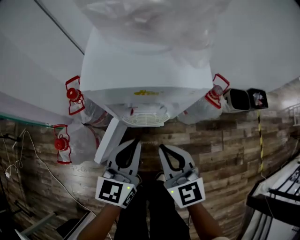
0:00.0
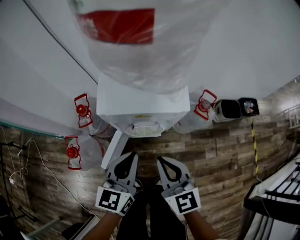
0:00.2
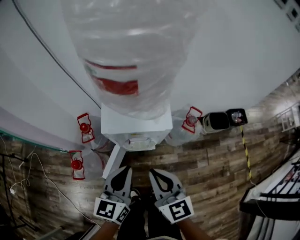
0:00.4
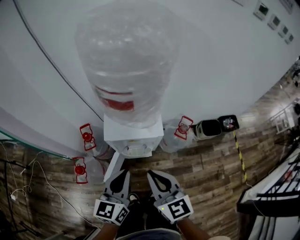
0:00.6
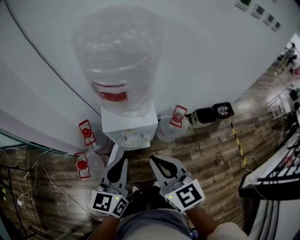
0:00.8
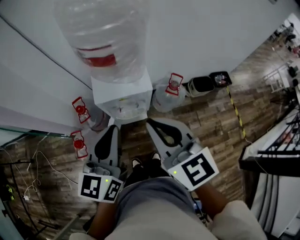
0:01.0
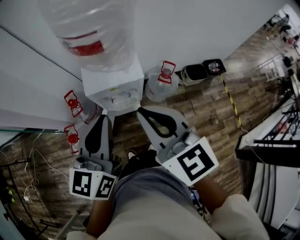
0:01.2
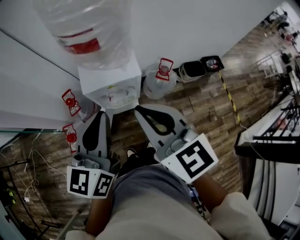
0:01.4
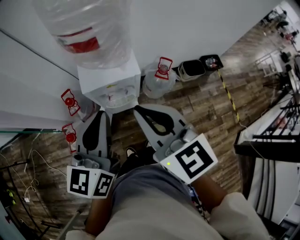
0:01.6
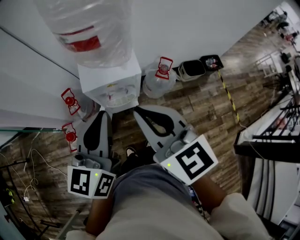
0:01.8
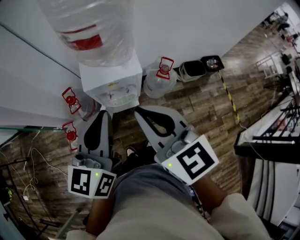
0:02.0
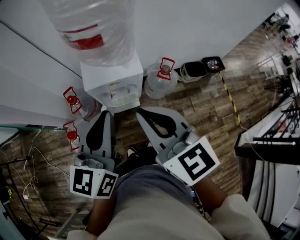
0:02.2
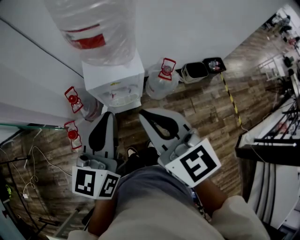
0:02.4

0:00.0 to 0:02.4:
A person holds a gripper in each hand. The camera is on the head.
0:00.0 to 0:01.2: Both grippers move upward, some 40 cm.
0:01.2 to 0:02.4: The grippers move only a little.

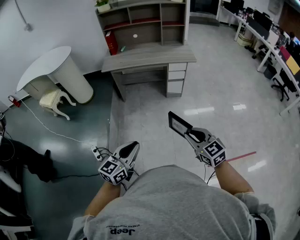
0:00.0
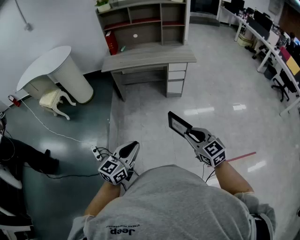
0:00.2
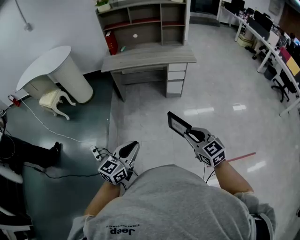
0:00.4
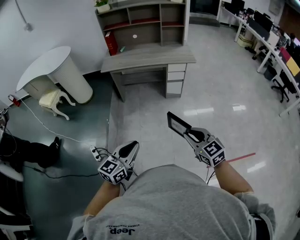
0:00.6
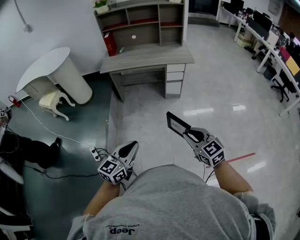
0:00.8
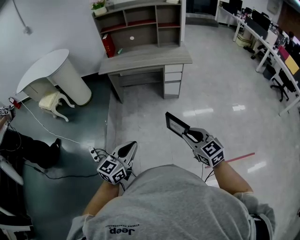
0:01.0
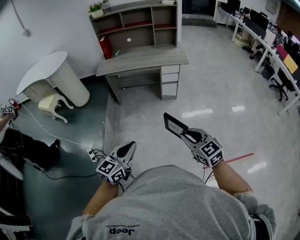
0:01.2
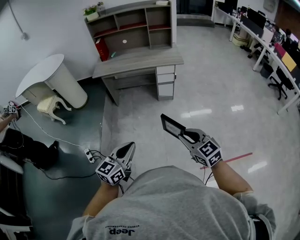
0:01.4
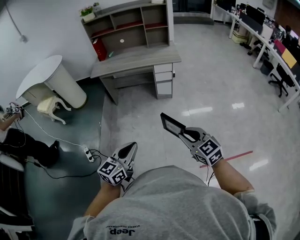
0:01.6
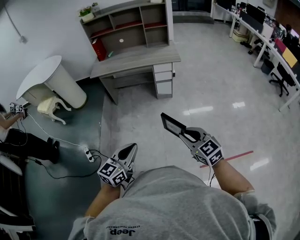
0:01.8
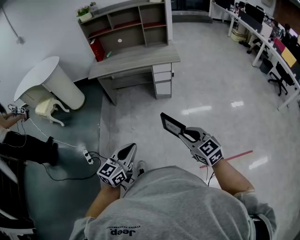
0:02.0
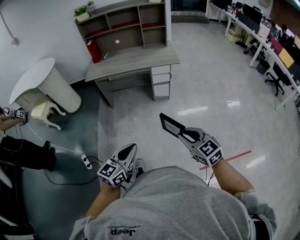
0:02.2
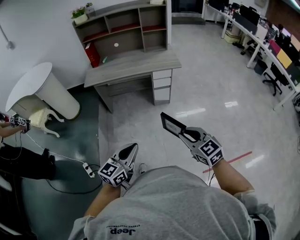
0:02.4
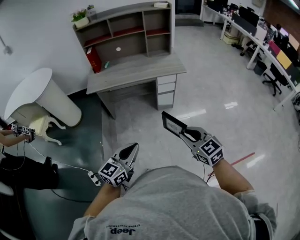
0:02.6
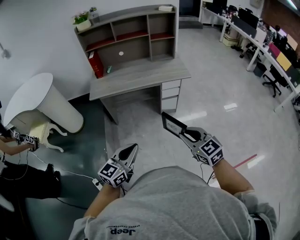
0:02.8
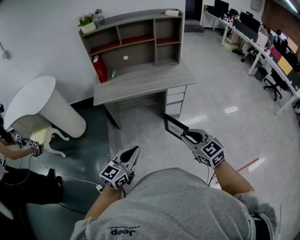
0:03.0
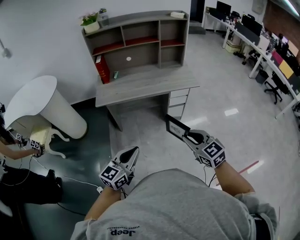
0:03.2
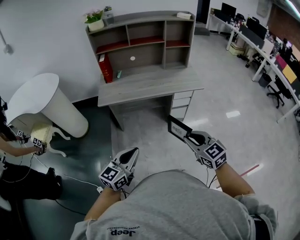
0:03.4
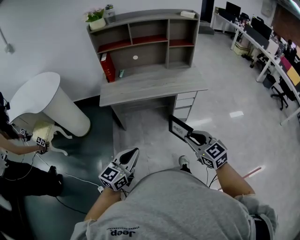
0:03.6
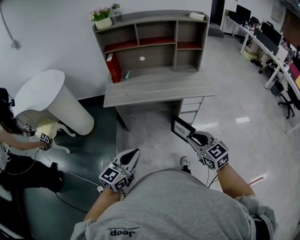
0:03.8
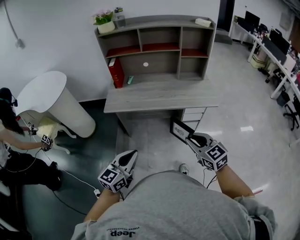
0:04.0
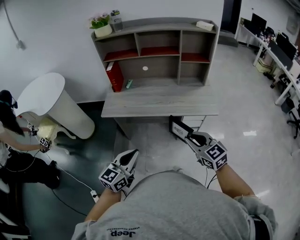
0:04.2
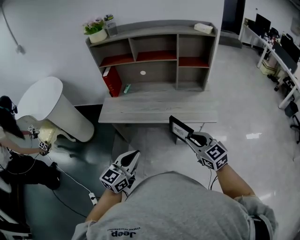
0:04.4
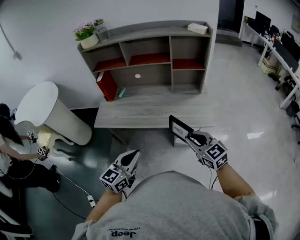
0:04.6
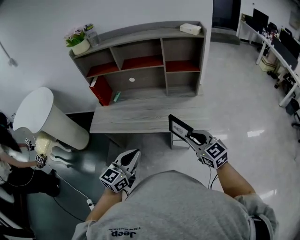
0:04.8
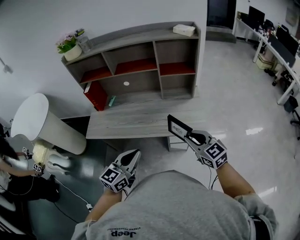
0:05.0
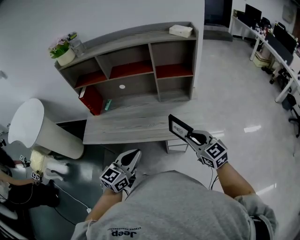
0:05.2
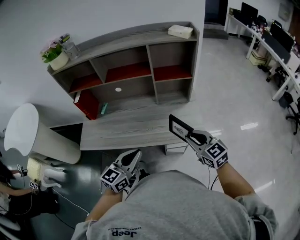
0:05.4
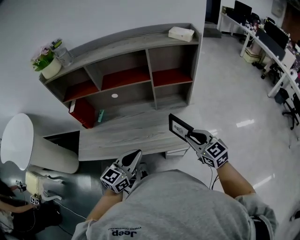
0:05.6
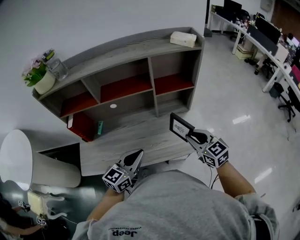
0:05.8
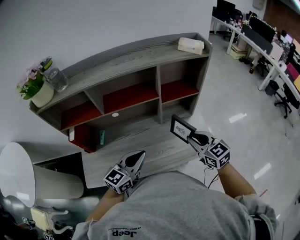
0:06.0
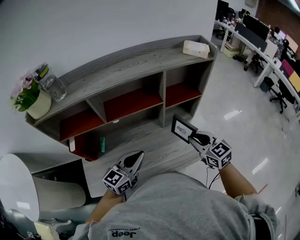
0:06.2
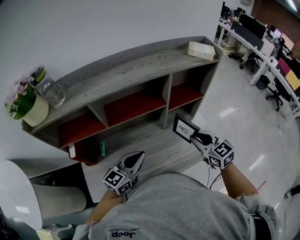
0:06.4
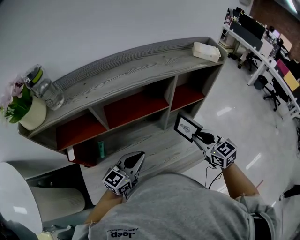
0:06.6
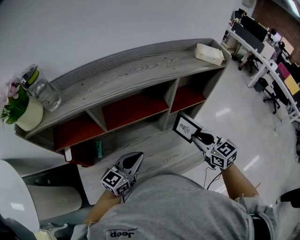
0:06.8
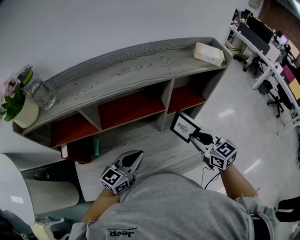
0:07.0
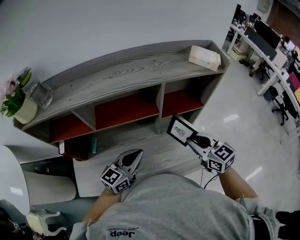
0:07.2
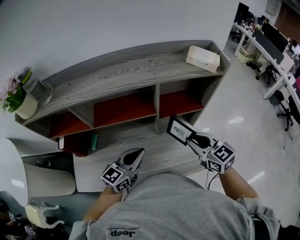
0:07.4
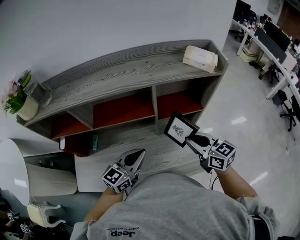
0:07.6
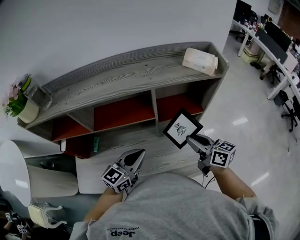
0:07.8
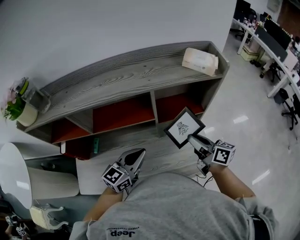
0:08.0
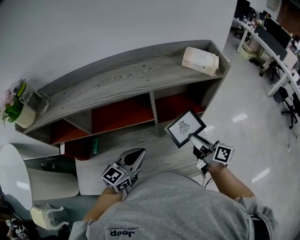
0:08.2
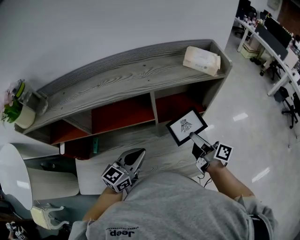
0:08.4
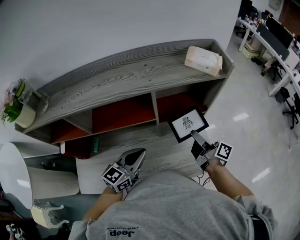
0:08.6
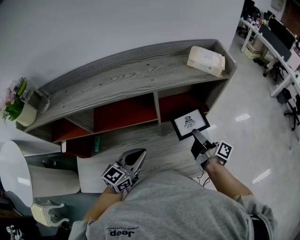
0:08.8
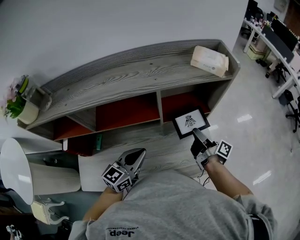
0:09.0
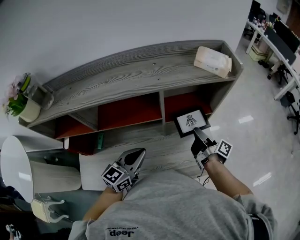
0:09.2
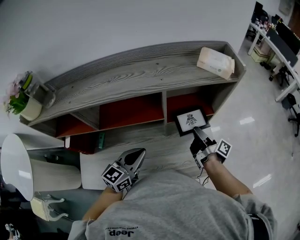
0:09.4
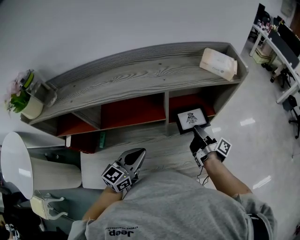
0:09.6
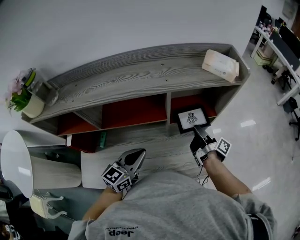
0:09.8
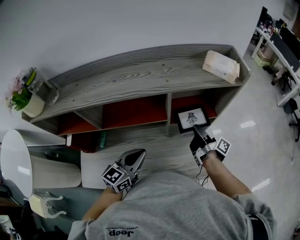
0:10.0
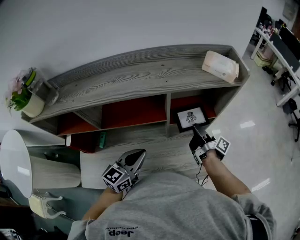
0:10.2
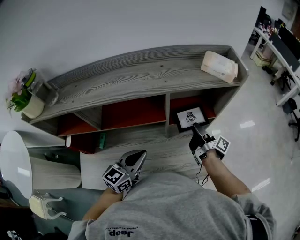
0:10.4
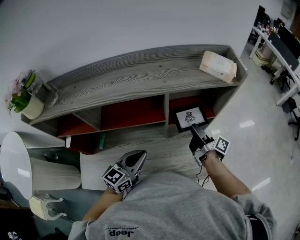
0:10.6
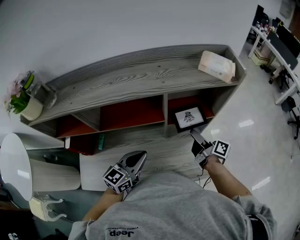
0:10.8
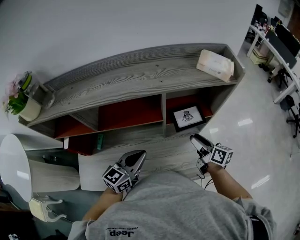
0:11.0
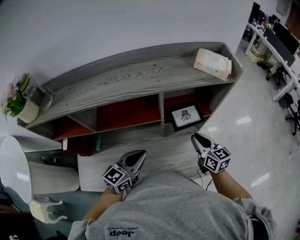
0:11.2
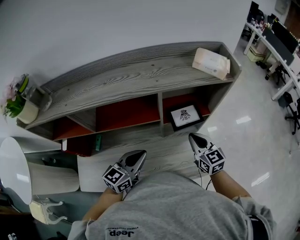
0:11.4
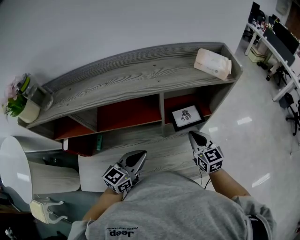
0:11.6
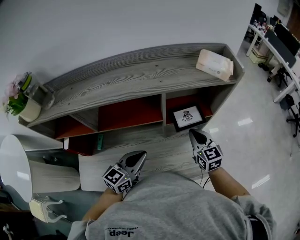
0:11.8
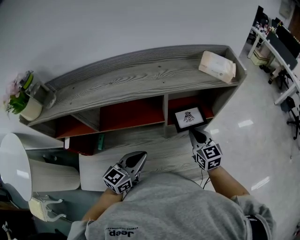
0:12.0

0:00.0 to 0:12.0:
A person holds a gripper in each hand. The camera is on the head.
0:00.0 to 0:01.6: The two grippers go roughly 15 cm to the right.
0:01.6 to 0:03.0: Both grippers travel together forward and to the left, about 35 cm.
0:03.0 to 0:04.4: The two grippers go roughly 30 cm forward.
0:04.4 to 0:06.0: Both grippers travel together forward, approximately 35 cm. The left gripper changes its angle by approximately 20 degrees.
0:06.0 to 0:07.6: The grippers both shift forward by some 10 cm.
0:07.6 to 0:09.0: The right gripper heads downward and forward, covering about 10 cm, and twists roughly 70 degrees clockwise, seen from behind.
0:09.0 to 0:10.4: The right gripper changes place by about 5 cm.
0:10.4 to 0:12.0: The right gripper twists about 80 degrees counterclockwise, seen from behind, and closes.

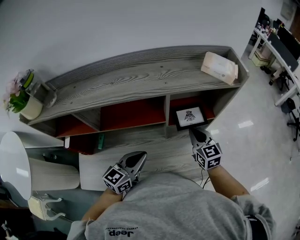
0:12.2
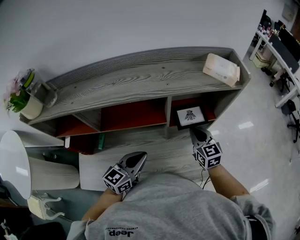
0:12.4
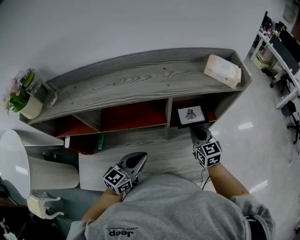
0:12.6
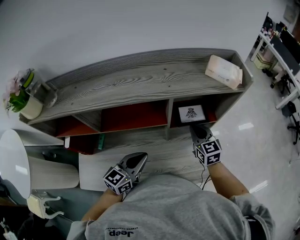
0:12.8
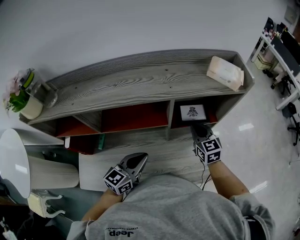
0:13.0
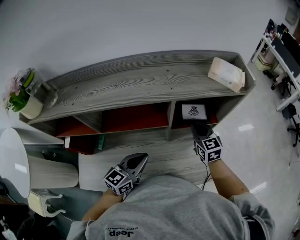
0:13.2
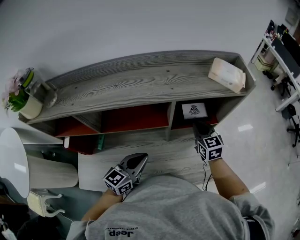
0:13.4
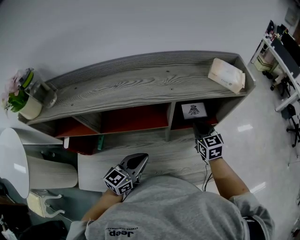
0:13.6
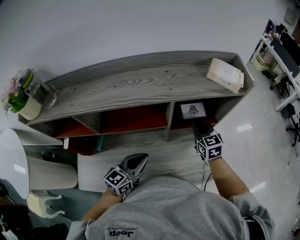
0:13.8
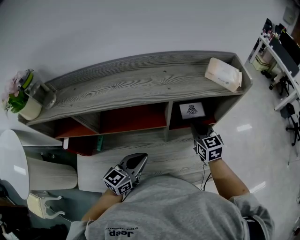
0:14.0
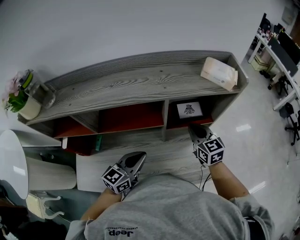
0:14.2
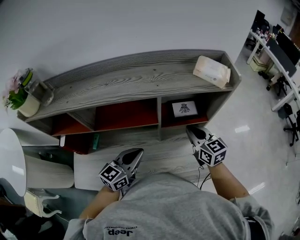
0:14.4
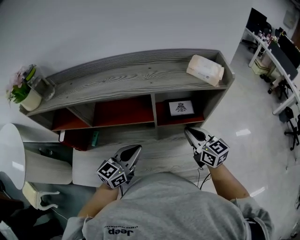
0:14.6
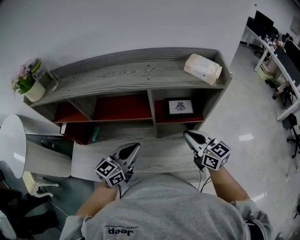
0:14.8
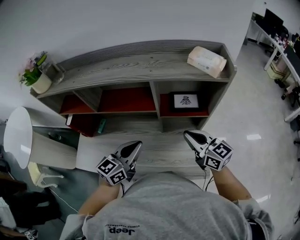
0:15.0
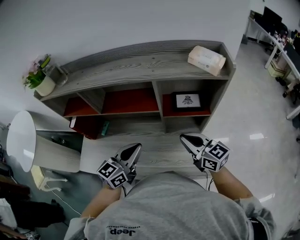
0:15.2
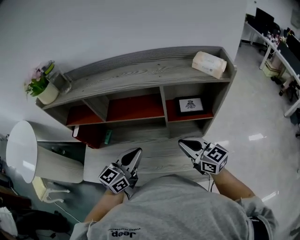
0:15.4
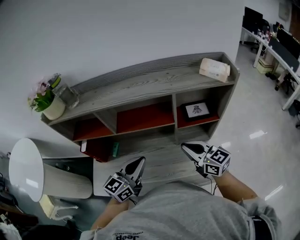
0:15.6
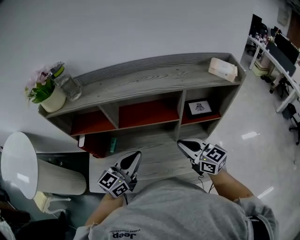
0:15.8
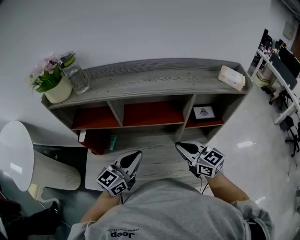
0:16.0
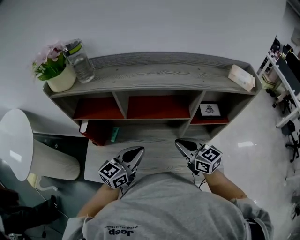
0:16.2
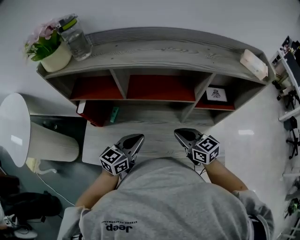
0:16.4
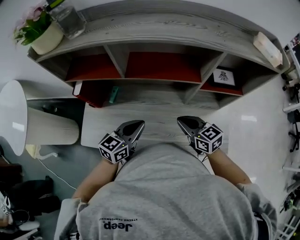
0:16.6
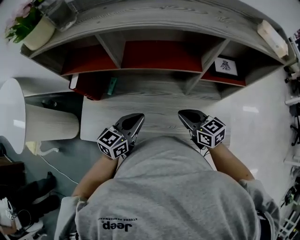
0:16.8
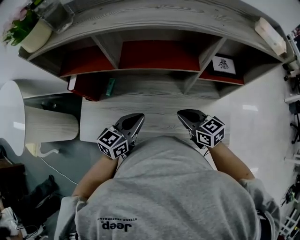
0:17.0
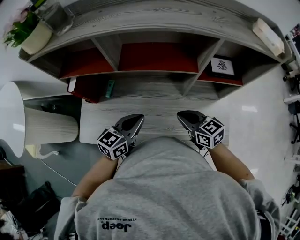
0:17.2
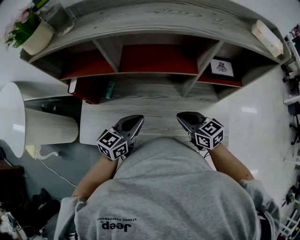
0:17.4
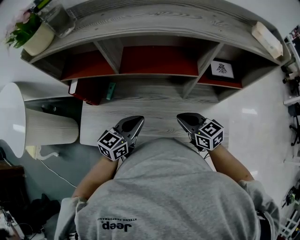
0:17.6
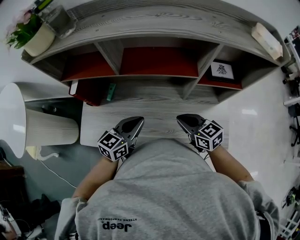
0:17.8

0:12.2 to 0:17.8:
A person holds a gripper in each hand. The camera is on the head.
0:12.2 to 0:13.6: The right gripper moves forward, roughly 5 cm.
0:13.6 to 0:15.0: The left gripper moves to the right, approximately 5 cm. Meanwhile the right gripper goes roughly 15 cm backward and upward, and turns by some 40 degrees.
0:15.0 to 0:16.4: The two grippers go about 20 cm to the left.
0:16.4 to 0:17.8: The right gripper travels downward by some 5 cm.

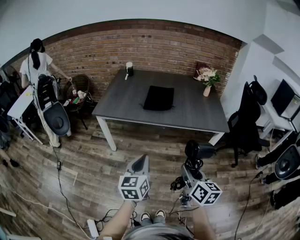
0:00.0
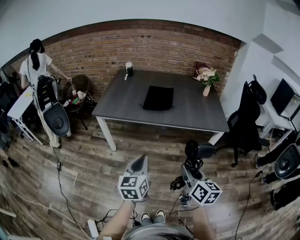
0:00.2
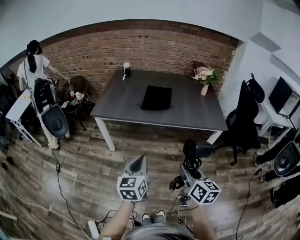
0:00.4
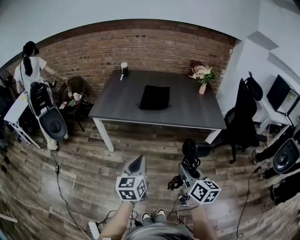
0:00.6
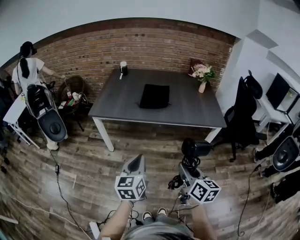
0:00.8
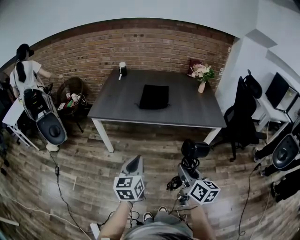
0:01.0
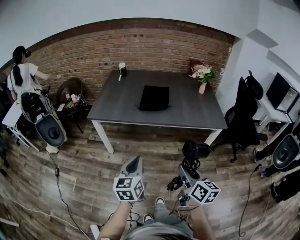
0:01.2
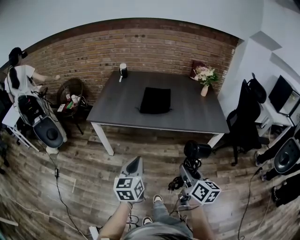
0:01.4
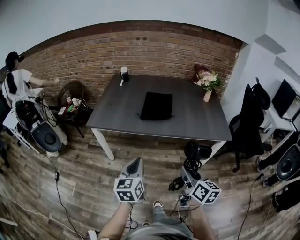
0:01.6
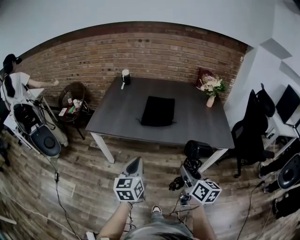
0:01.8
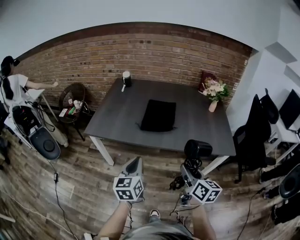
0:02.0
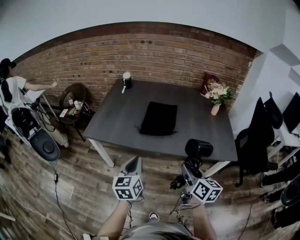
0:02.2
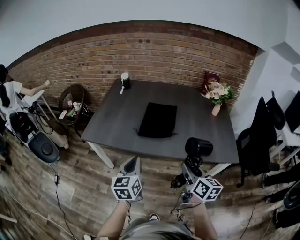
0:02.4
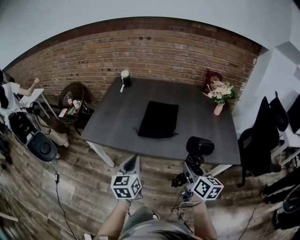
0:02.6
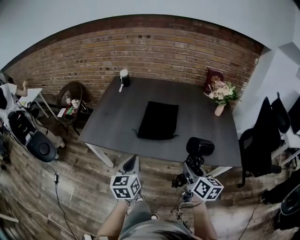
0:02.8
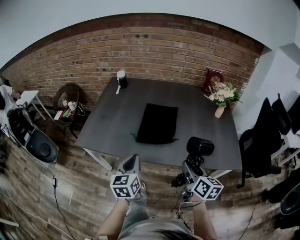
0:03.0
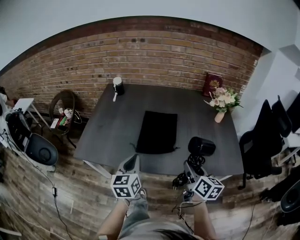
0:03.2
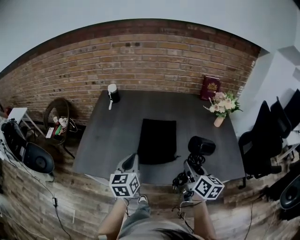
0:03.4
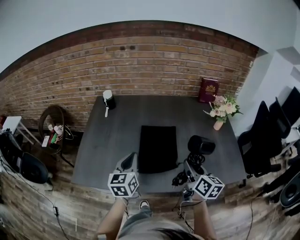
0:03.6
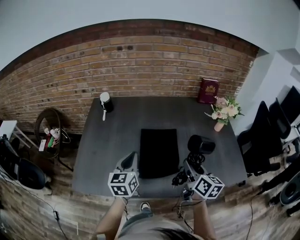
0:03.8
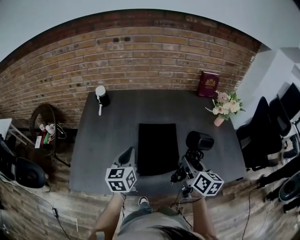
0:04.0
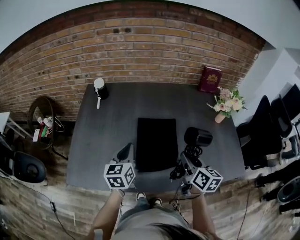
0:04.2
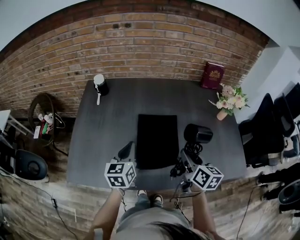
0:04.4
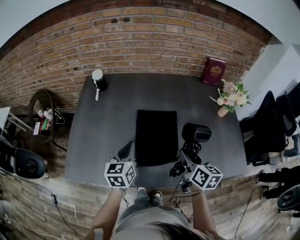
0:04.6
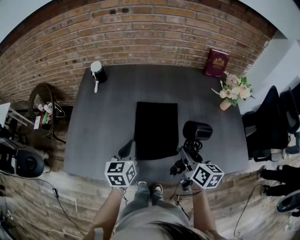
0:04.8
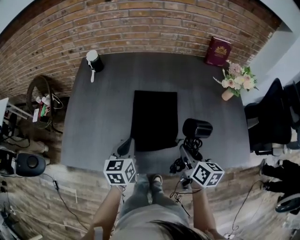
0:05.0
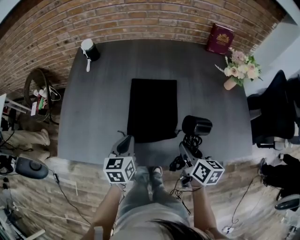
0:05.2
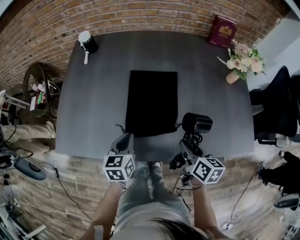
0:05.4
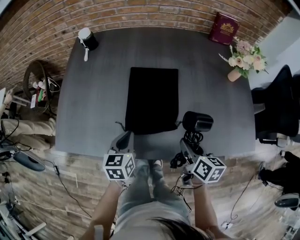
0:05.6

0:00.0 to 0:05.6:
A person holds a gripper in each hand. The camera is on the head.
0:00.0 to 0:01.4: Both grippers move forward, about 5 cm.
0:01.4 to 0:02.8: Both grippers move forward, some 25 cm.
0:02.8 to 0:04.2: The grippers both shift forward by approximately 30 cm.
0:04.2 to 0:05.6: Both grippers move downward and backward, about 15 cm.
